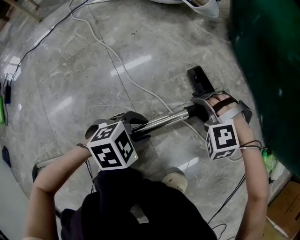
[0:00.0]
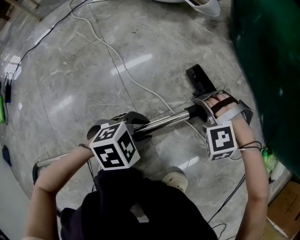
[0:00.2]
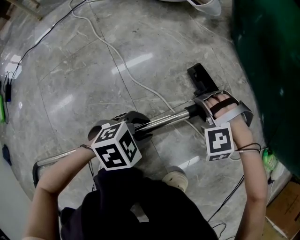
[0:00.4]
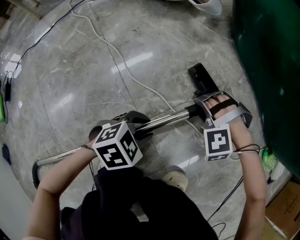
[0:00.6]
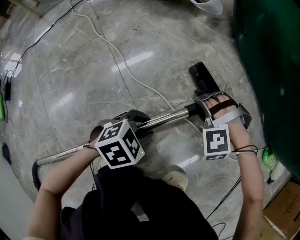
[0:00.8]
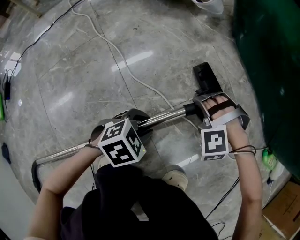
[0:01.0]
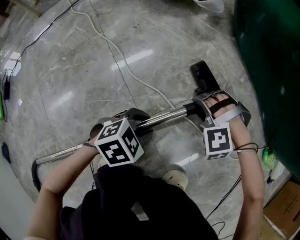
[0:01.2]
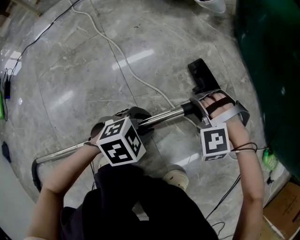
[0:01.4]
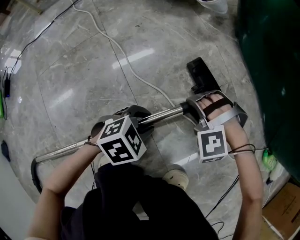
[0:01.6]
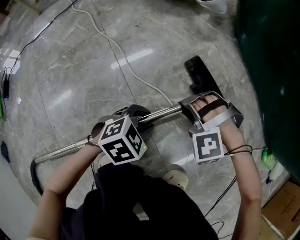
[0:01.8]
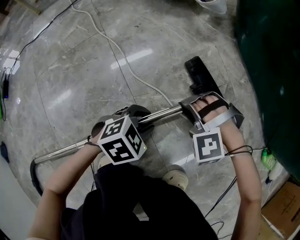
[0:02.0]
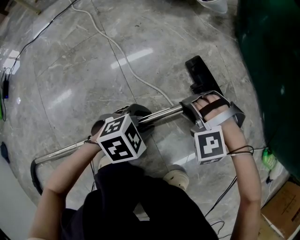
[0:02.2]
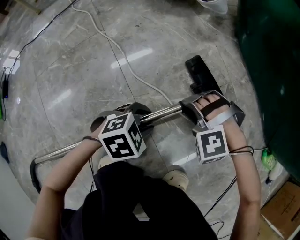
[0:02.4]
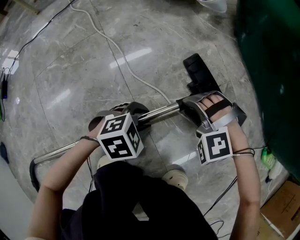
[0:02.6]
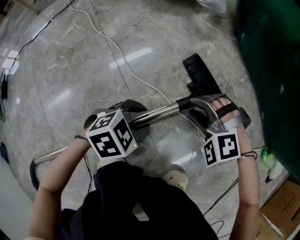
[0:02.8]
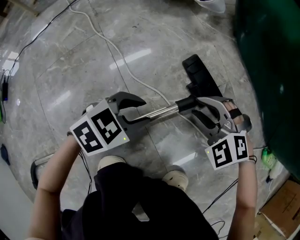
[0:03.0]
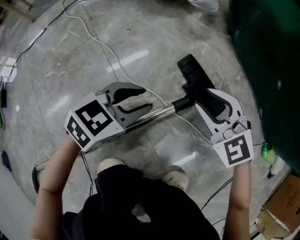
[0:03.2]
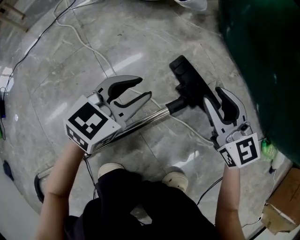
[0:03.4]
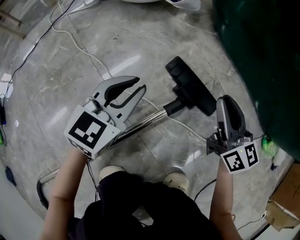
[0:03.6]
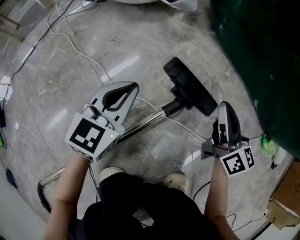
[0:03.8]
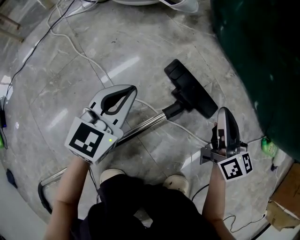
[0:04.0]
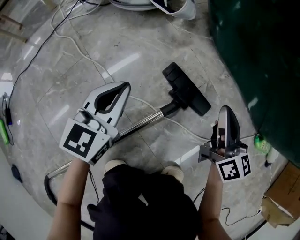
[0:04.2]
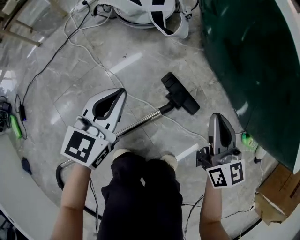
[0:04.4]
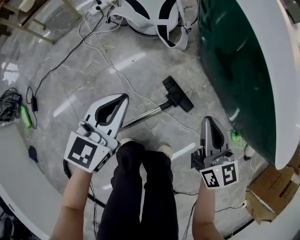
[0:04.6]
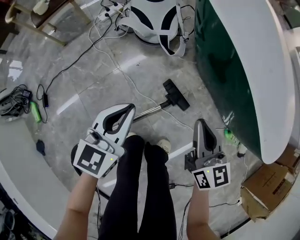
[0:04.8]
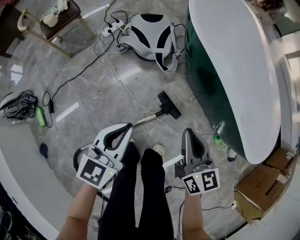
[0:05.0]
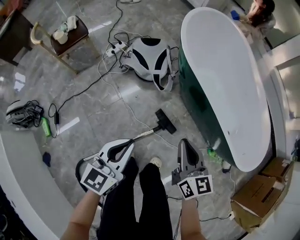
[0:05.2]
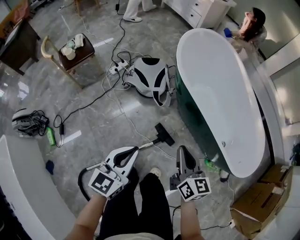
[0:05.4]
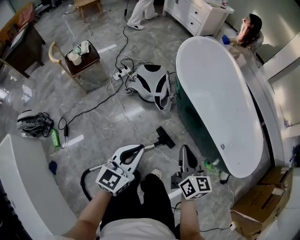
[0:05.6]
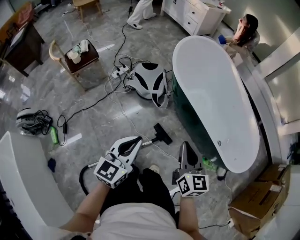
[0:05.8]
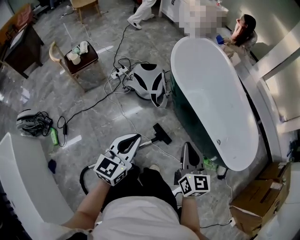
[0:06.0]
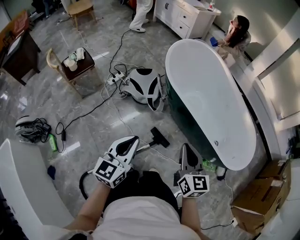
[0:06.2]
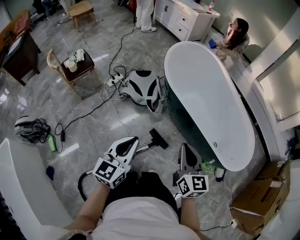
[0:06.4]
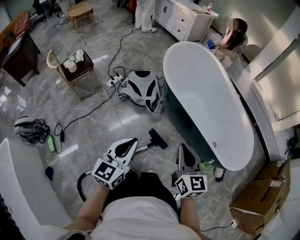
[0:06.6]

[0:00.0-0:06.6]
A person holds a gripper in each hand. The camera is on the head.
0:00.0 to 0:01.6: The grippers stay close to where they were, moving slightly.
0:01.6 to 0:03.2: The left gripper goes roughly 10 cm upward and forward, and changes its angle by roughly 20 degrees; the right gripper goes some 10 cm upward, and twists roughly 50 degrees clockwise, seen from behind.
0:03.2 to 0:05.0: Both grippers move upward, roughly 60 cm. The right gripper twists about 50 degrees clockwise, seen from behind, and closes; the left gripper swivels approximately 30 degrees, and closes up.
0:05.0 to 0:06.6: The two grippers go approximately 20 cm upward.

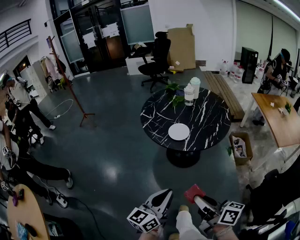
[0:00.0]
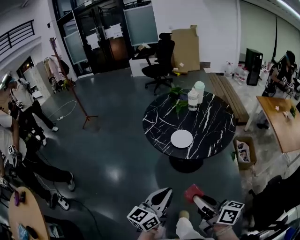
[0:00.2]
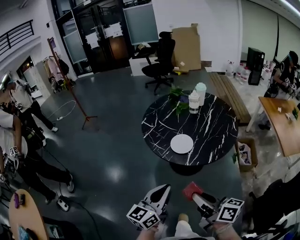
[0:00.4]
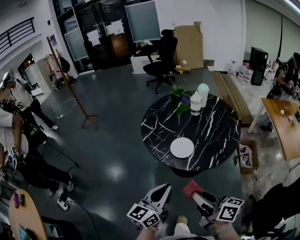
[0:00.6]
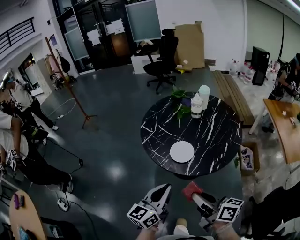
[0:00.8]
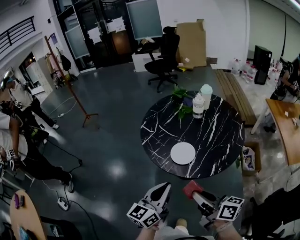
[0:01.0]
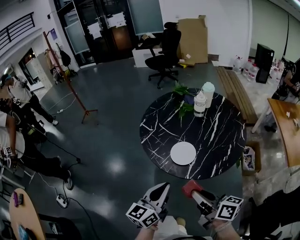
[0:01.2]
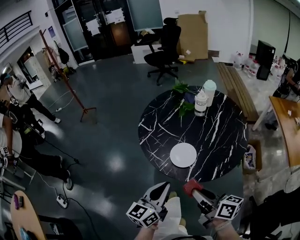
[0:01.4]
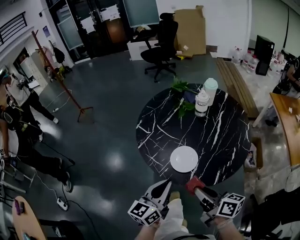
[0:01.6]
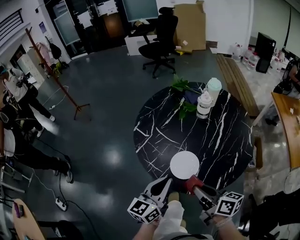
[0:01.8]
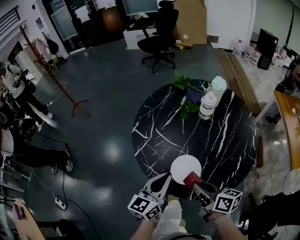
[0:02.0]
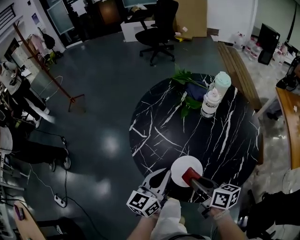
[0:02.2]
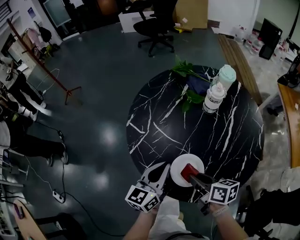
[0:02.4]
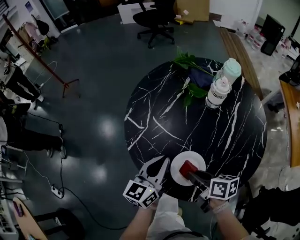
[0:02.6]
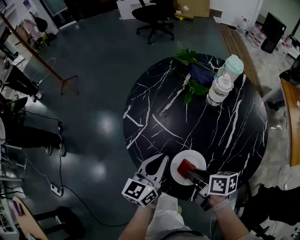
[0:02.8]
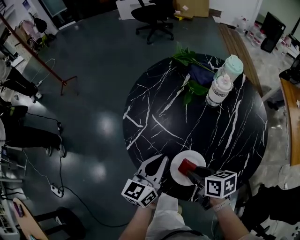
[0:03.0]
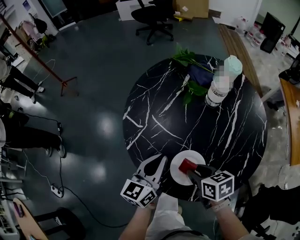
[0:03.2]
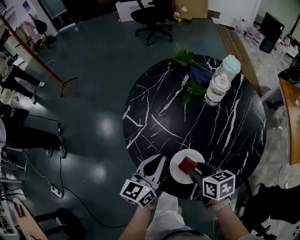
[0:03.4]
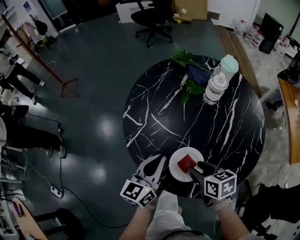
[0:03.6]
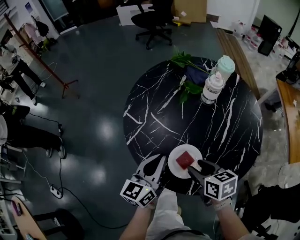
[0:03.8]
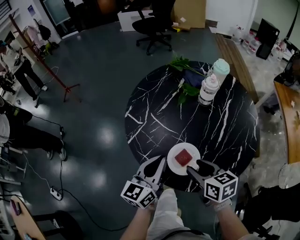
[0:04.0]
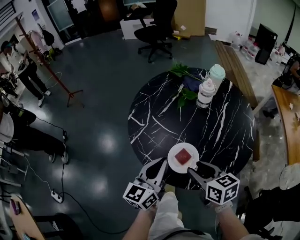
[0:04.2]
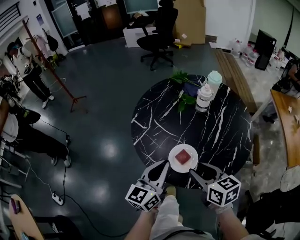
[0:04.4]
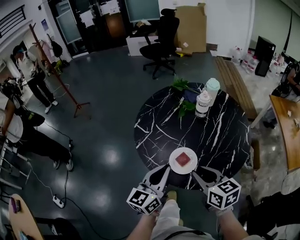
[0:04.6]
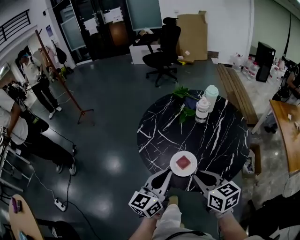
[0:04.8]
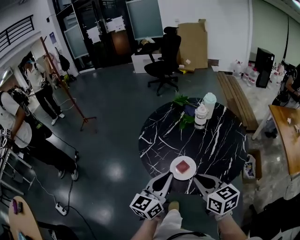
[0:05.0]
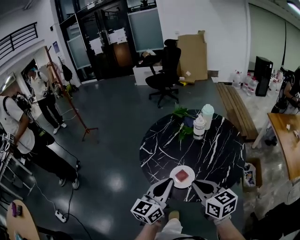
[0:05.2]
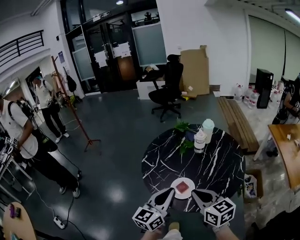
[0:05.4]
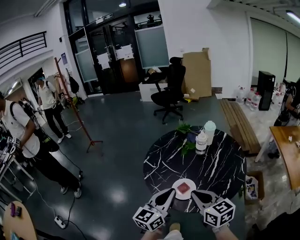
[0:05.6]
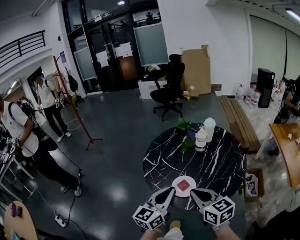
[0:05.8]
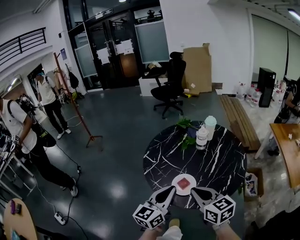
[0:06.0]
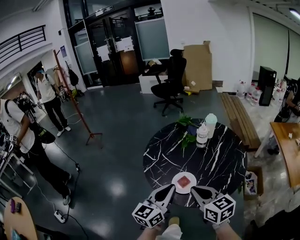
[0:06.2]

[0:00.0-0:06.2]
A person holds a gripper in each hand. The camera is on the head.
0:00.0 to 0:01.6: The two grippers go approximately 30 cm forward.
0:01.6 to 0:03.2: Both grippers move forward and downward, approximately 25 cm. The right gripper points its fingers approximately 40 degrees further downward.
0:03.2 to 0:04.6: The right gripper is displaced upward and backward by about 20 cm, and turns by some 30 degrees. Meanwhile the left gripper goes some 15 cm backward and upward.
0:04.6 to 0:06.2: The two grippers go about 5 cm upward. The right gripper closes its fingers.

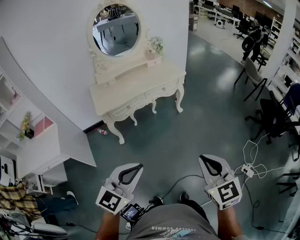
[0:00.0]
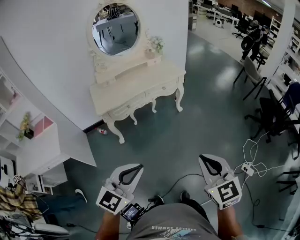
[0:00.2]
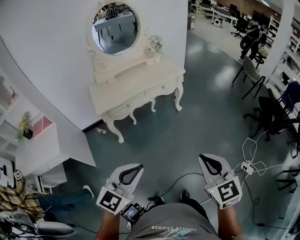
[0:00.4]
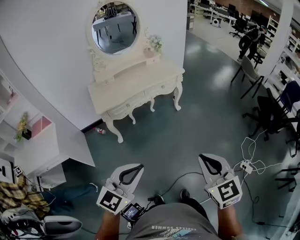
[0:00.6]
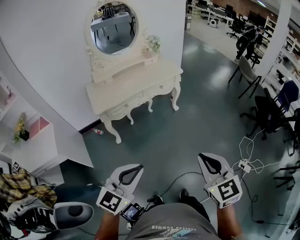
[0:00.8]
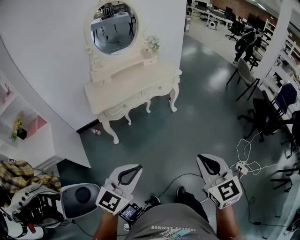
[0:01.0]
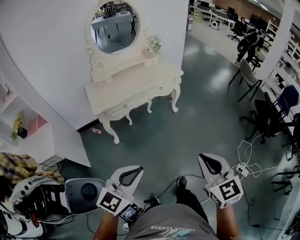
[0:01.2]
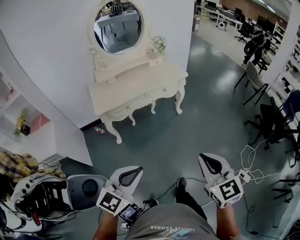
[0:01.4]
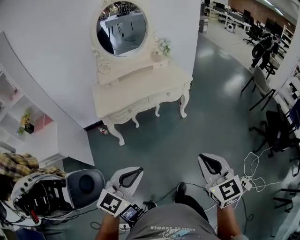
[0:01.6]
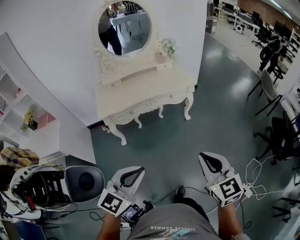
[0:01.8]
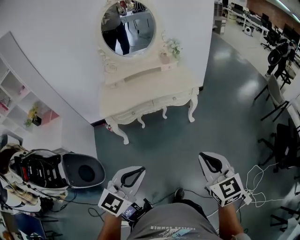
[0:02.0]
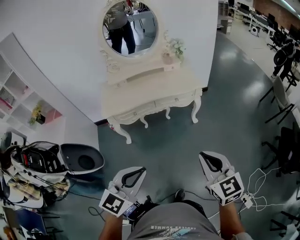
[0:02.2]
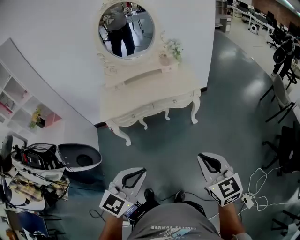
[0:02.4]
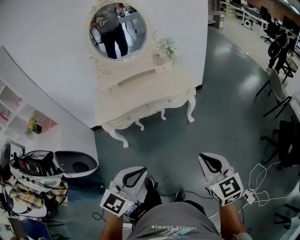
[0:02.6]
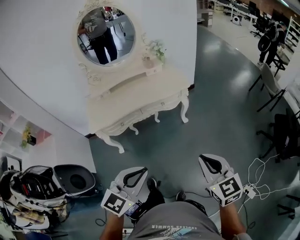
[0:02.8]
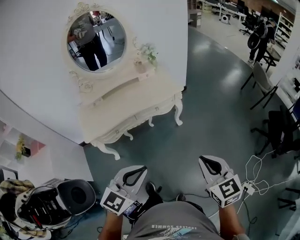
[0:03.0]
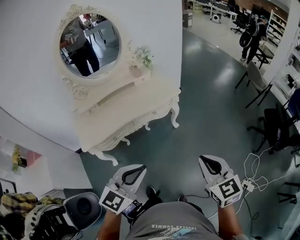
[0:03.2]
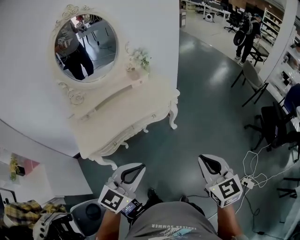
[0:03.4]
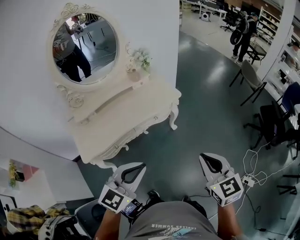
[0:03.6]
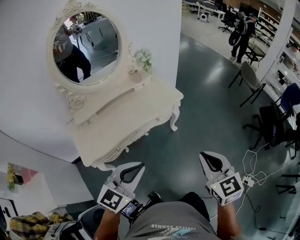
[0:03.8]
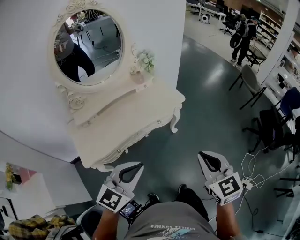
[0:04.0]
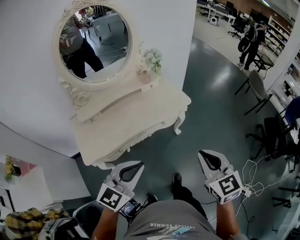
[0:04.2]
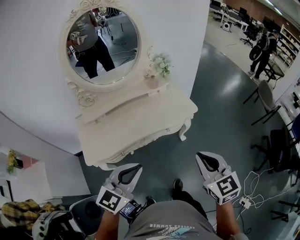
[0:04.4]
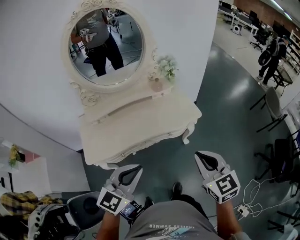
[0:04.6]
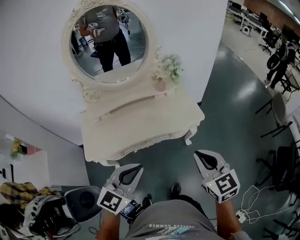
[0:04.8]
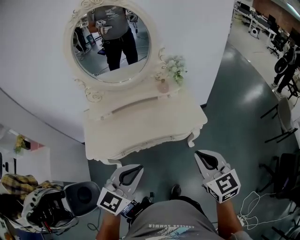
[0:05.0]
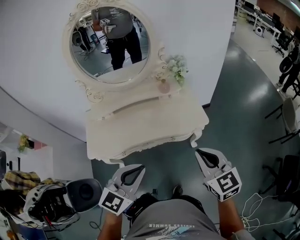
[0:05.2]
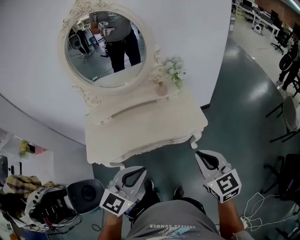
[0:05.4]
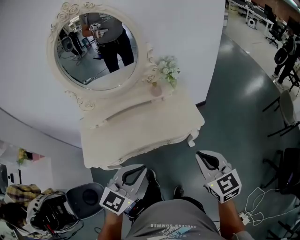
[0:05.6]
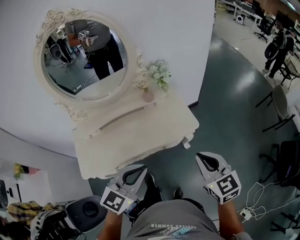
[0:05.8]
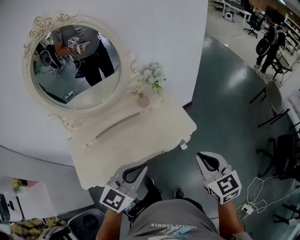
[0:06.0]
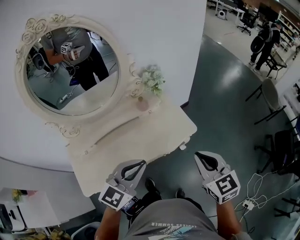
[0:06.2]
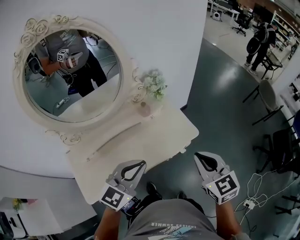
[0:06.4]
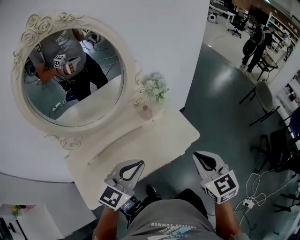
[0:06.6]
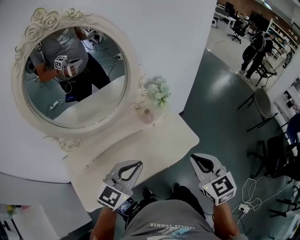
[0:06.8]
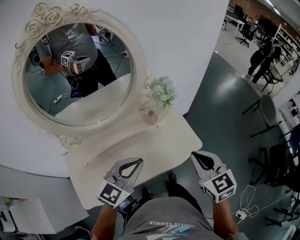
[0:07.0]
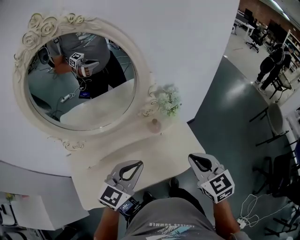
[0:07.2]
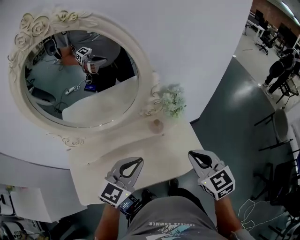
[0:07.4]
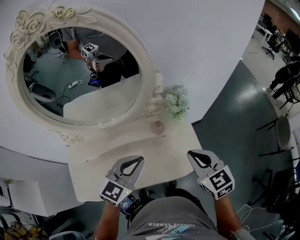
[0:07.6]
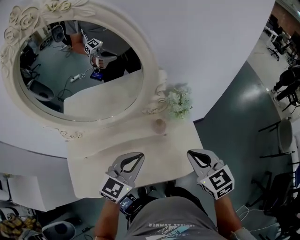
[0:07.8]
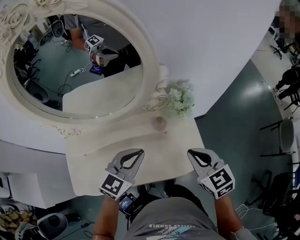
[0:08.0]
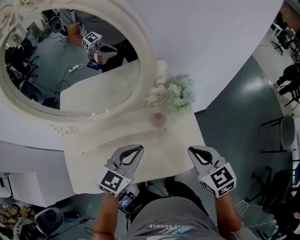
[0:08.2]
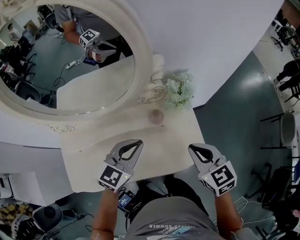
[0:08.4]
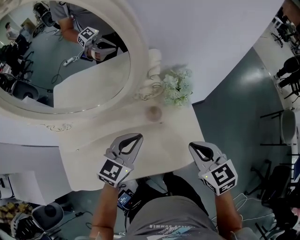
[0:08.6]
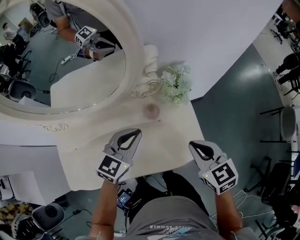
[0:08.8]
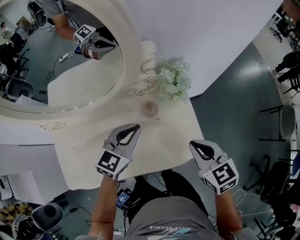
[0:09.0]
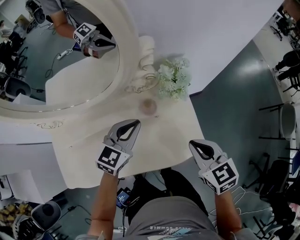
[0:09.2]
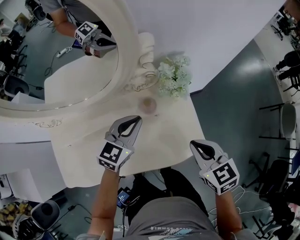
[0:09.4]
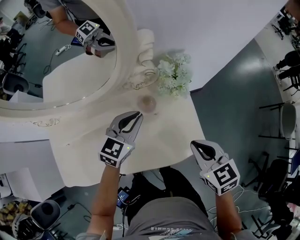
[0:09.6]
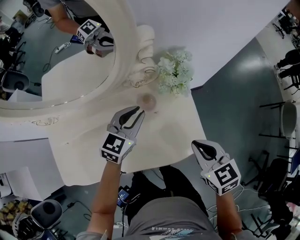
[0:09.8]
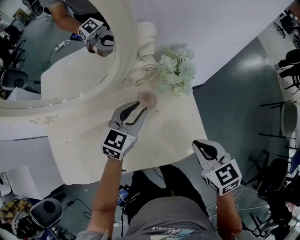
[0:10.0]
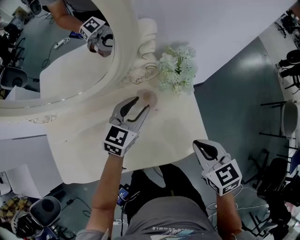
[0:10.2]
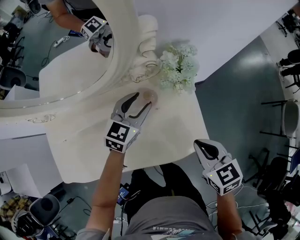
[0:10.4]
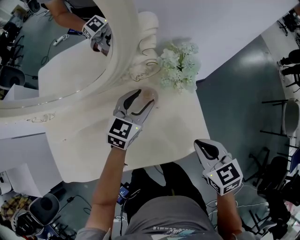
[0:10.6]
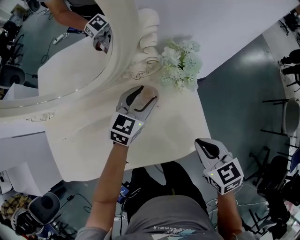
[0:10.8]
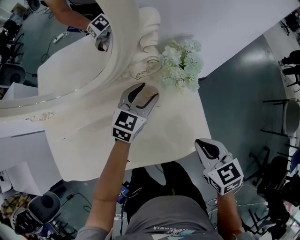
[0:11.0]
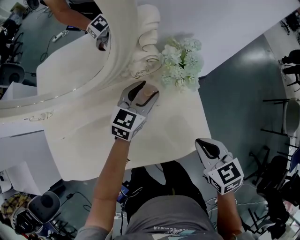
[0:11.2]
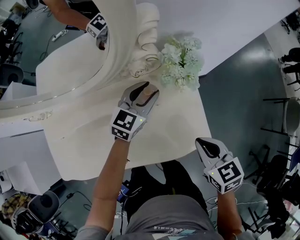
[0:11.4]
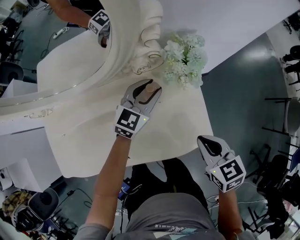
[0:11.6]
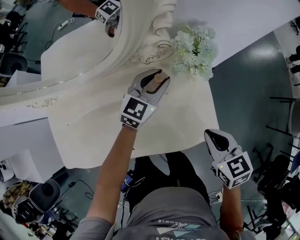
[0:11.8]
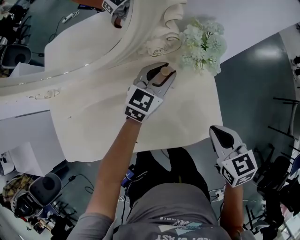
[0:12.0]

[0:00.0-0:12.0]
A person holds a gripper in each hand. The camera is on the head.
0:00.0 to 0:01.6: Both grippers move forward, some 10 cm.
0:01.6 to 0:03.0: The grippers both shift forward and to the right by roughly 25 cm.
0:03.0 to 0:04.4: Both grippers travel together forward and to the left, roughly 25 cm.
0:04.4 to 0:06.0: Both grippers travel together forward and to the right, some 25 cm.
0:06.0 to 0:07.6: The two grippers go approximately 25 cm forward and to the left.
0:07.6 to 0:09.0: The left gripper is displaced forward and downward by roughly 15 cm, while the right gripper heads downward, covering about 10 cm.
0:09.0 to 0:10.4: The right gripper travels downward by approximately 5 cm; the left gripper goes some 10 cm downward and forward, and opens its fingers.
0:10.4 to 0:12.0: The grippers move only a little.
